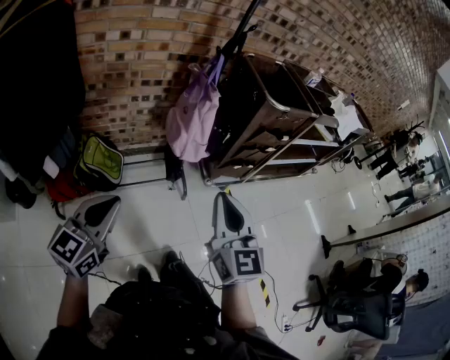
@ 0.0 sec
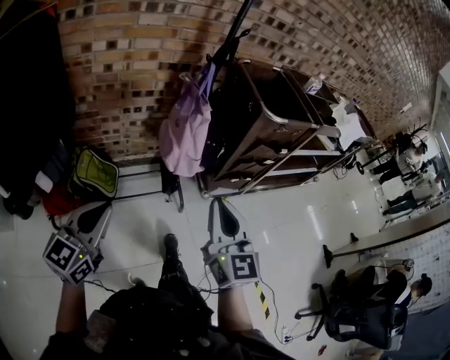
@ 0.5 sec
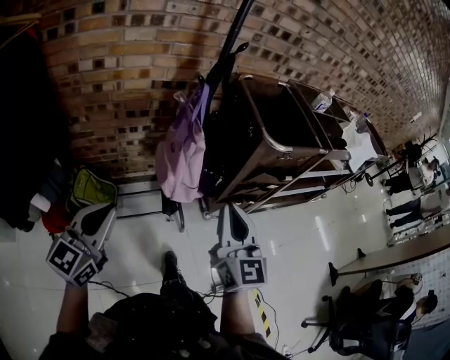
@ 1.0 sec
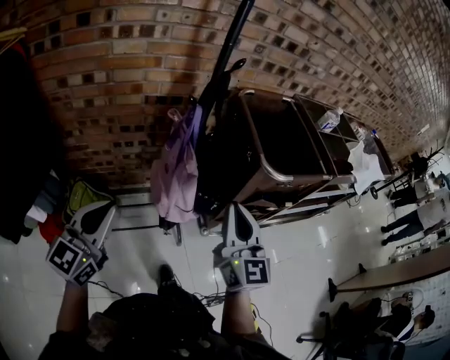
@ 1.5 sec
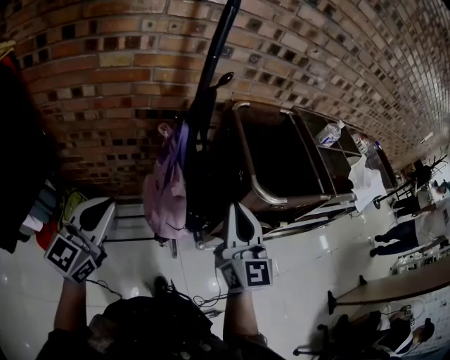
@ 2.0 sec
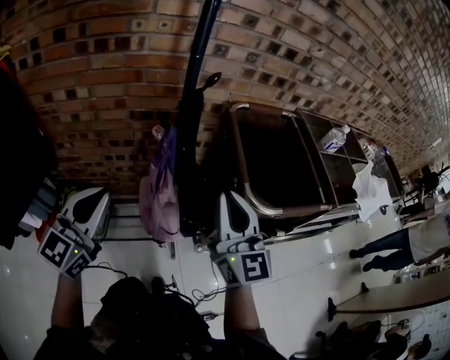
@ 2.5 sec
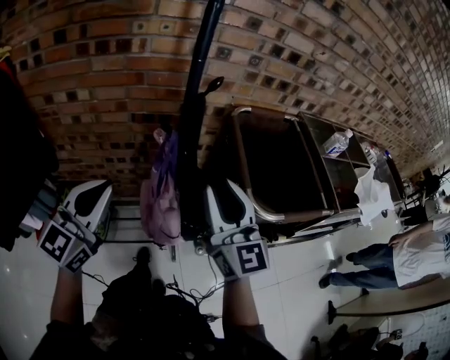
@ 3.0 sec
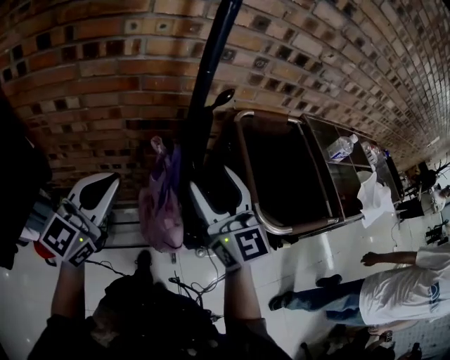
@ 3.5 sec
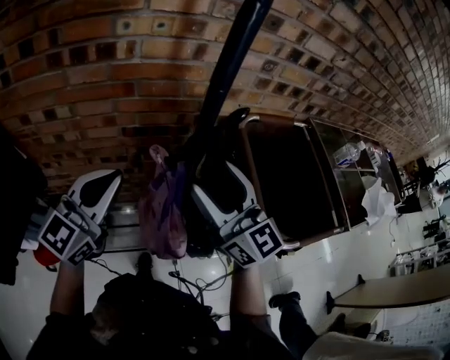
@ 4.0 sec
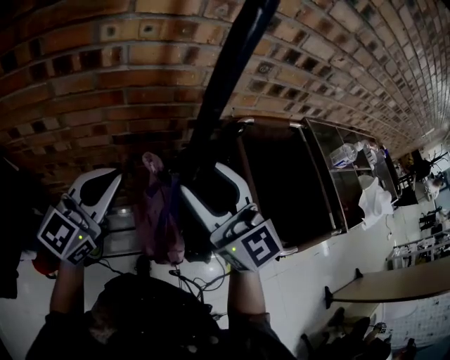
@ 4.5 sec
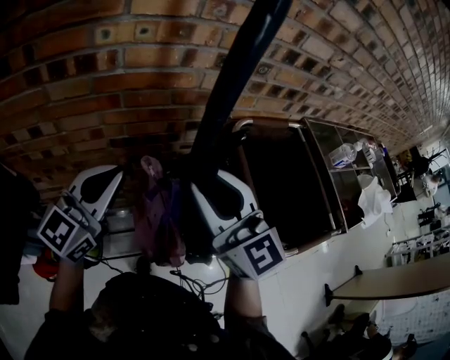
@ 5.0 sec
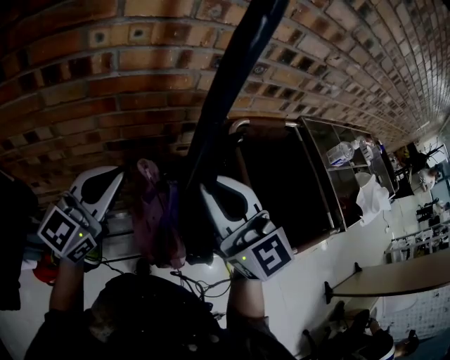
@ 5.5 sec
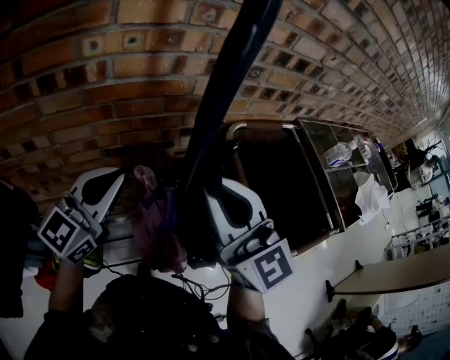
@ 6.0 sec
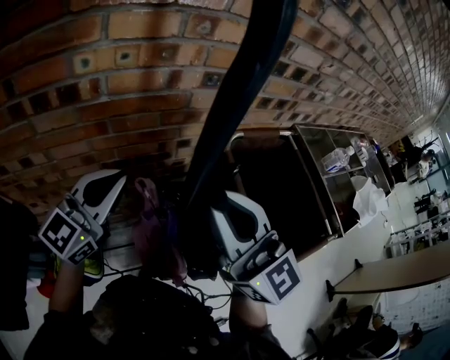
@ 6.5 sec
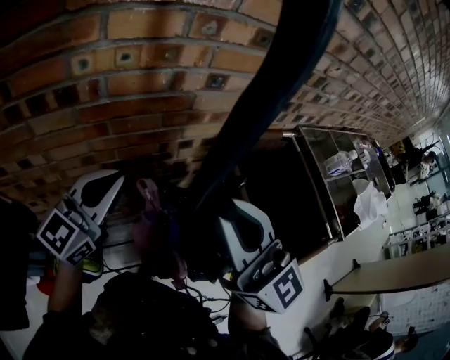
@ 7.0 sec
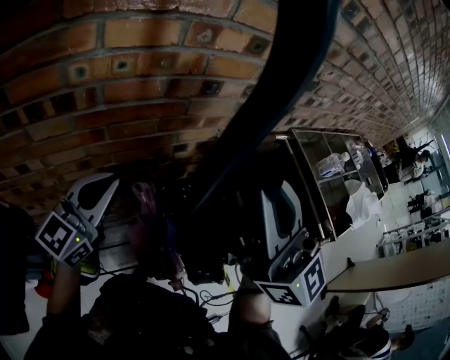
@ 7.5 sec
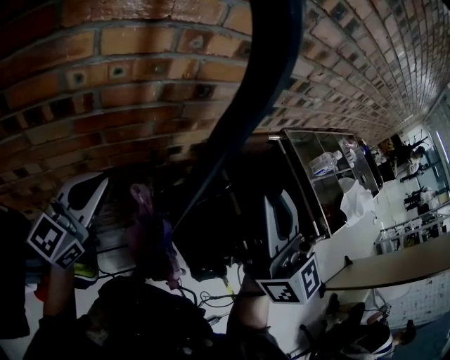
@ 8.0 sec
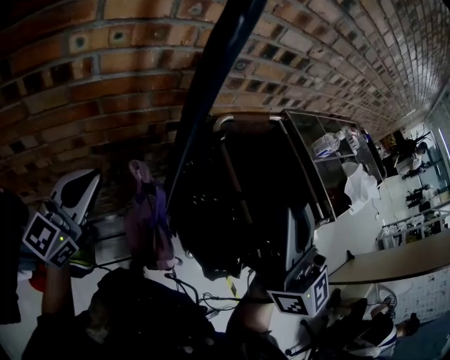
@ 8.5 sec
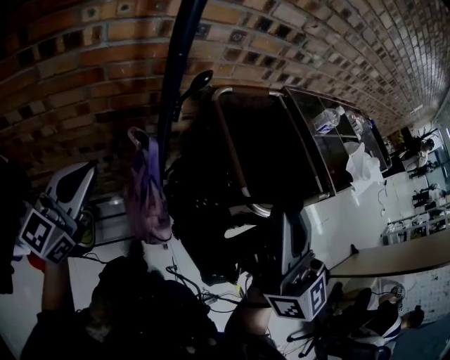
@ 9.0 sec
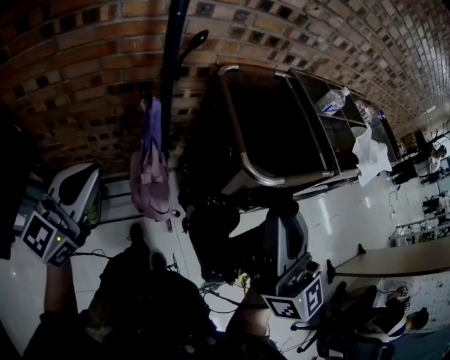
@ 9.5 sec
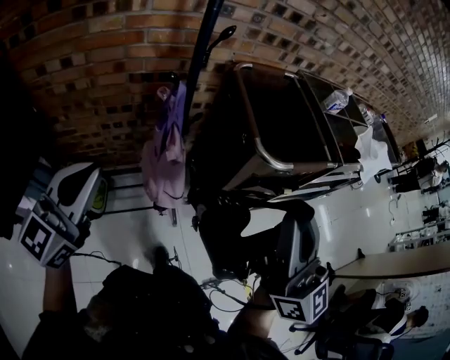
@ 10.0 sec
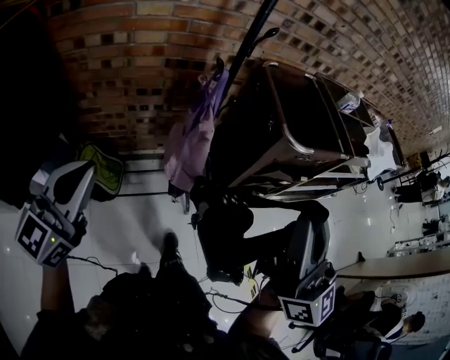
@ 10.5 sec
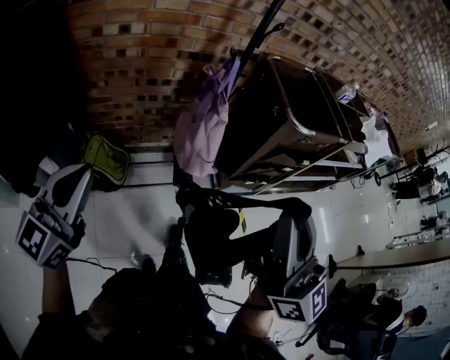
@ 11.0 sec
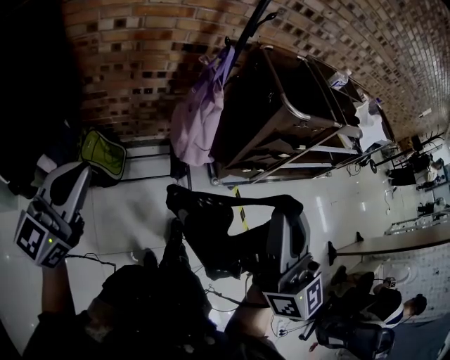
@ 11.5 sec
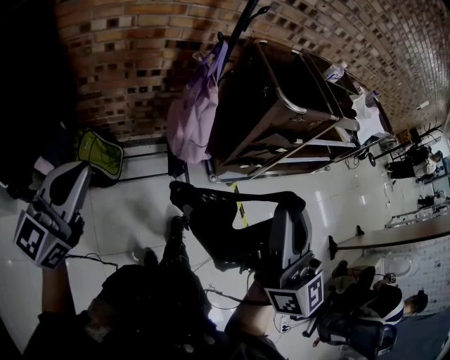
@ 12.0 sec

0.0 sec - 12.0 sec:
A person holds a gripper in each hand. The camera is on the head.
0.0 sec - 2.0 sec: Both grippers are carried forward, some 40 cm.
2.0 sec - 4.0 sec: The right gripper moves forward and to the left, approximately 20 cm, changes its angle by approximately 30 degrees, and opens. Meanwhile the left gripper goes about 20 cm forward.
4.0 sec - 6.0 sec: The left gripper shifts some 10 cm forward, while the right gripper moves upward, about 5 cm, and closes up.
6.0 sec - 8.0 sec: The right gripper shifts about 10 cm upward and to the right, and changes its angle by some 20 degrees, while the left gripper shifts by approximately 5 cm.
8.0 sec - 10.0 sec: Both grippers travel together backward, approximately 35 cm.
10.0 sec - 12.0 sec: Both grippers travel together backward and to the left, approximately 30 cm.

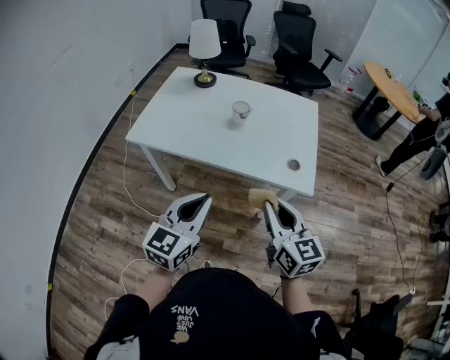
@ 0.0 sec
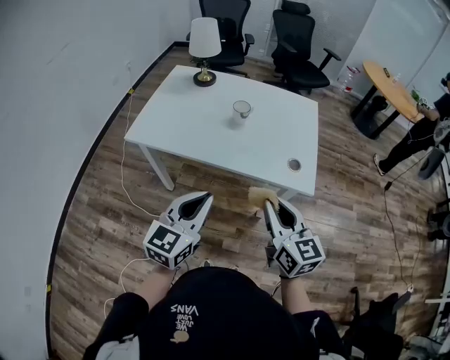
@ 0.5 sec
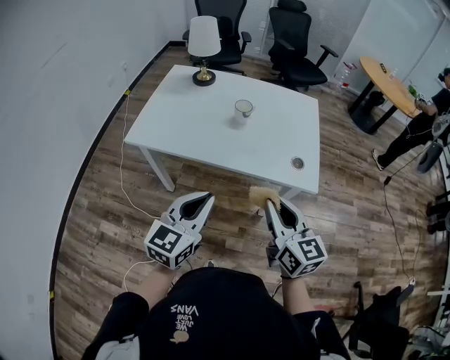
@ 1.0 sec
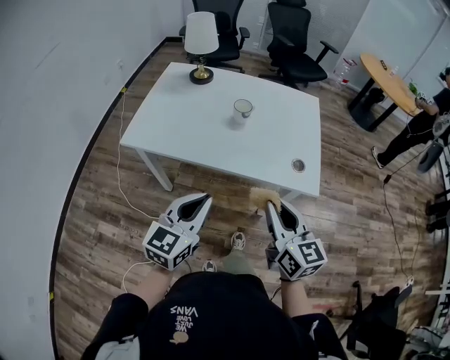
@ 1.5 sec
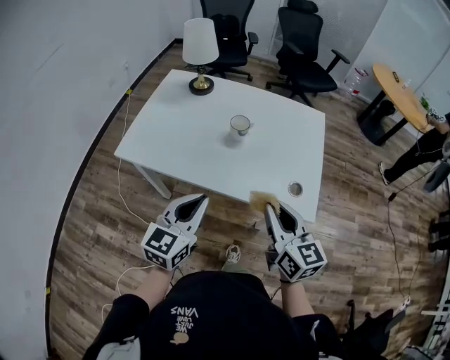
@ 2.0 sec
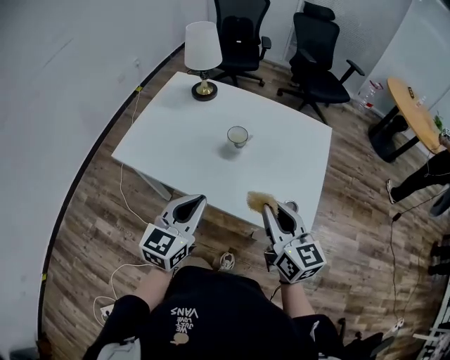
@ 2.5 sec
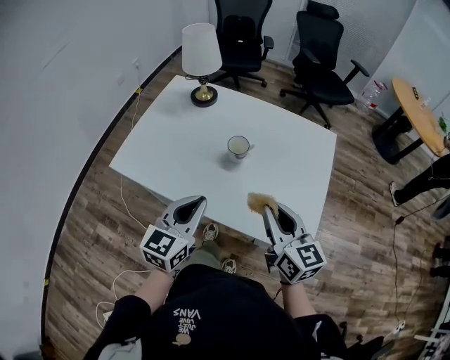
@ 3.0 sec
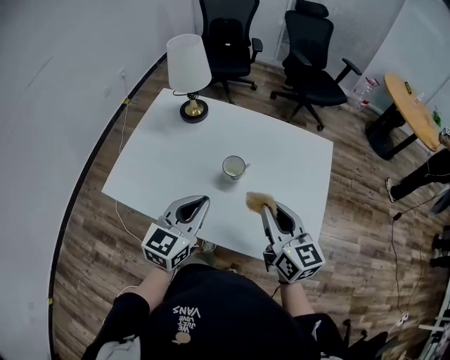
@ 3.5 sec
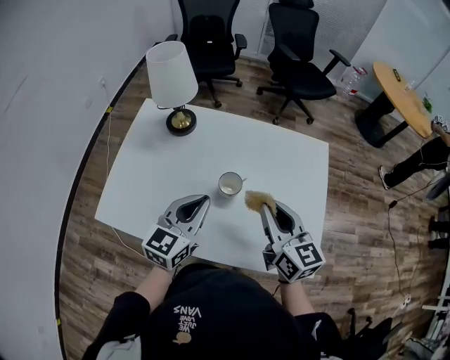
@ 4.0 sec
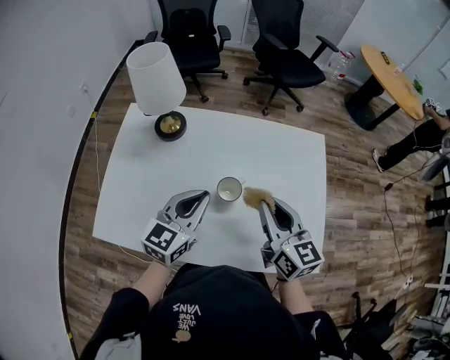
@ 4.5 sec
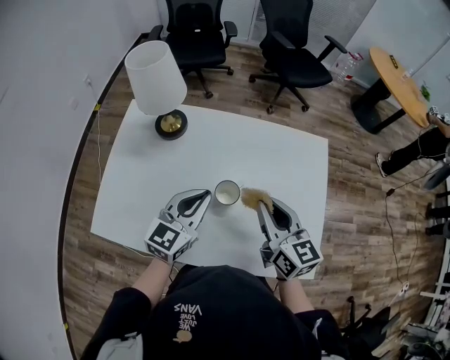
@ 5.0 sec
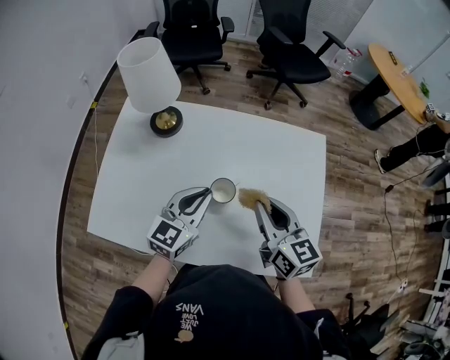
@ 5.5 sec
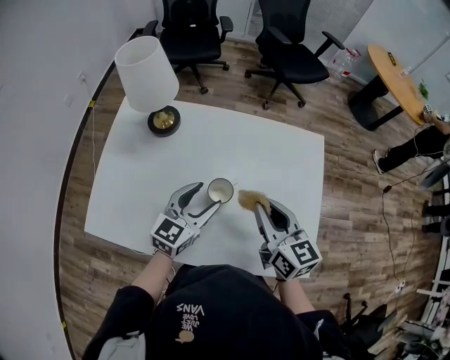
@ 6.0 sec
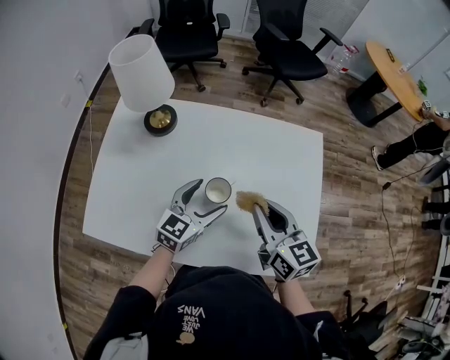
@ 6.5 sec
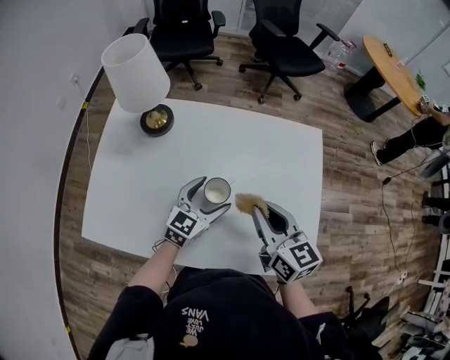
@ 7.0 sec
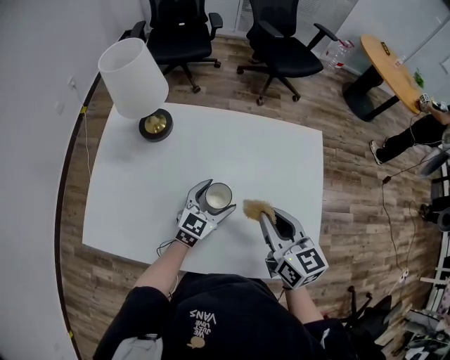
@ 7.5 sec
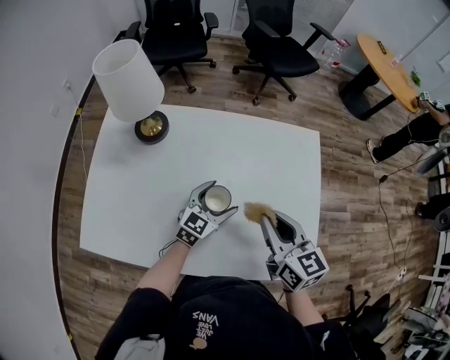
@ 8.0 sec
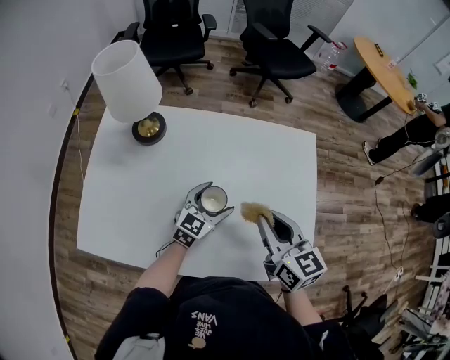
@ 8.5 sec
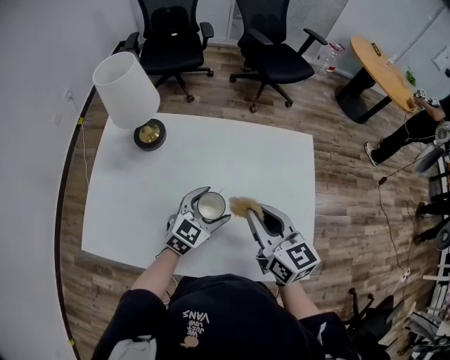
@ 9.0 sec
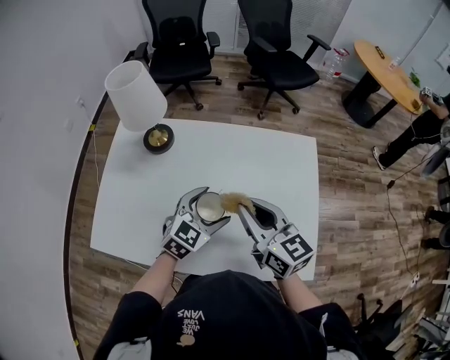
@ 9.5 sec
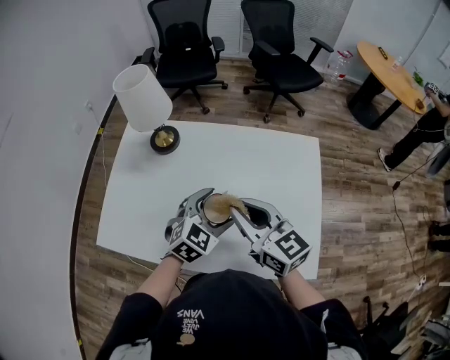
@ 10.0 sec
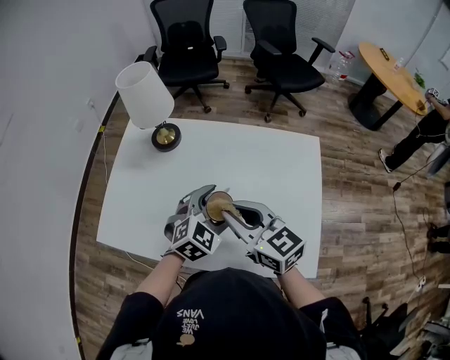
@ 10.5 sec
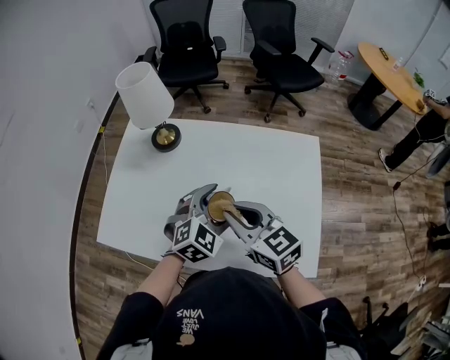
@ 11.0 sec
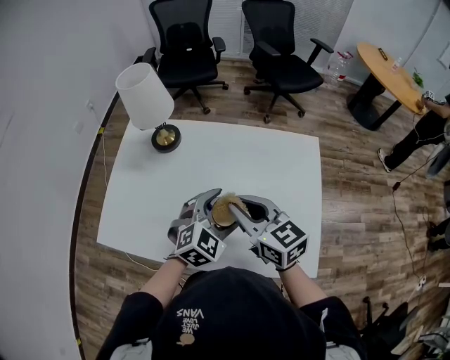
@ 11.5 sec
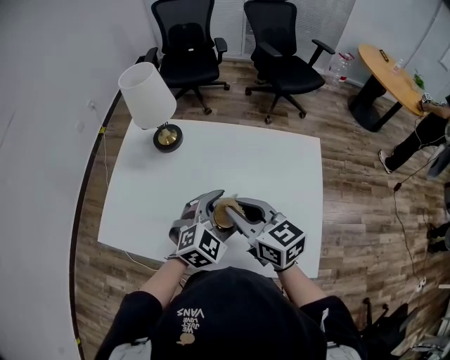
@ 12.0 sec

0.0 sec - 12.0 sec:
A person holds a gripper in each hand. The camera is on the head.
0.0 sec - 2.0 sec: The grippers both shift forward by some 10 cm.
2.0 sec - 4.0 sec: Both grippers travel together forward, about 25 cm.
4.0 sec - 6.0 sec: The right gripper shifts by roughly 5 cm, while the left gripper is displaced forward and downward by some 10 cm, and opens up.
6.0 sec - 8.0 sec: The left gripper is displaced downward and to the right by about 10 cm, and opens up.
8.0 sec - 10.0 sec: The right gripper is displaced to the left and upward by approximately 10 cm, and swivels roughly 20 degrees. The left gripper travels upward and backward by approximately 10 cm, and swivels roughly 20 degrees.
10.0 sec - 12.0 sec: The grippers move only a little.

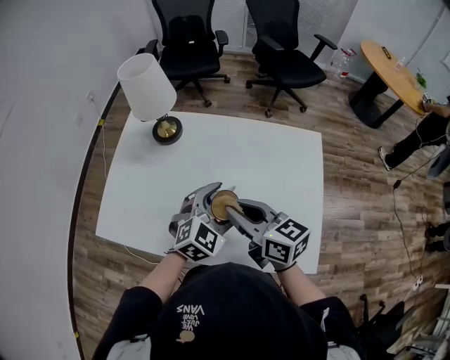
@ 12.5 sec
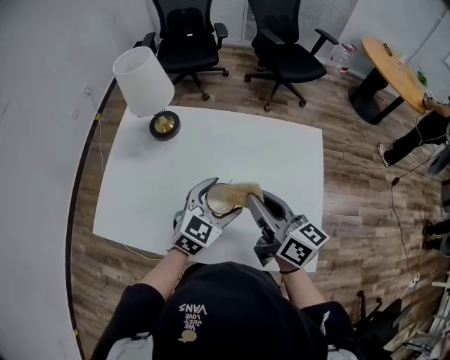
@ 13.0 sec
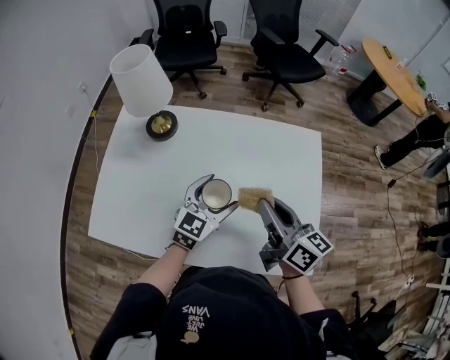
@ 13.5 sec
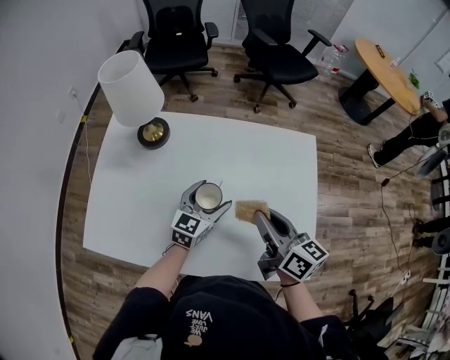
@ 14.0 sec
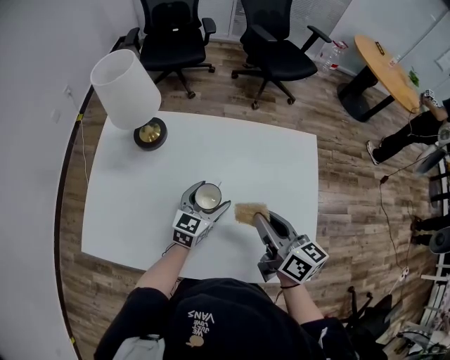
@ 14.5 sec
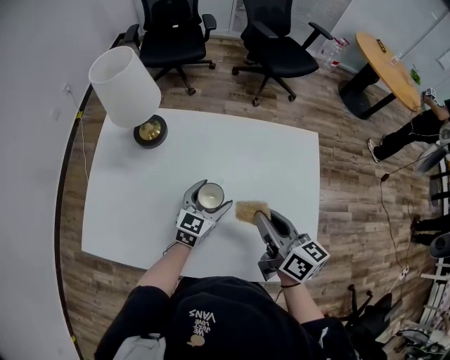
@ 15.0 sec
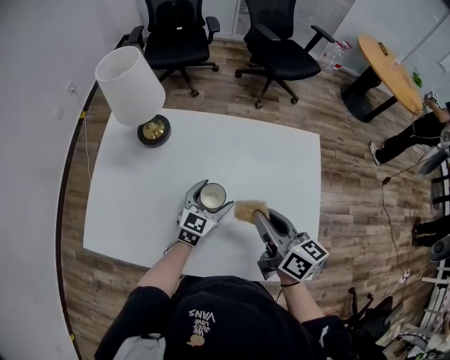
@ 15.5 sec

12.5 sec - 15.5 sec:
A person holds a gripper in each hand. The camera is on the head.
12.5 sec - 14.0 sec: The left gripper goes about 10 cm forward and downward, and swivels about 30 degrees, while the right gripper heads to the right, covering about 10 cm, and turns by some 20 degrees.
14.0 sec - 15.5 sec: The grippers make only small movements.
